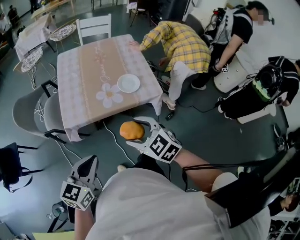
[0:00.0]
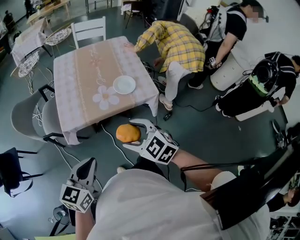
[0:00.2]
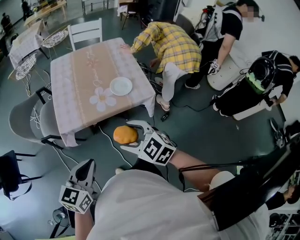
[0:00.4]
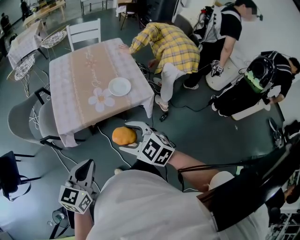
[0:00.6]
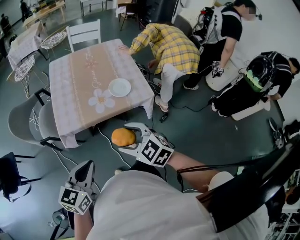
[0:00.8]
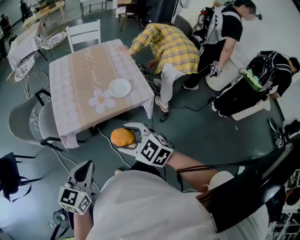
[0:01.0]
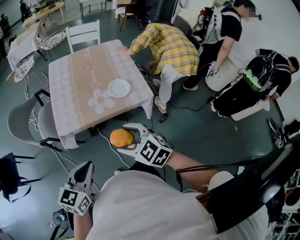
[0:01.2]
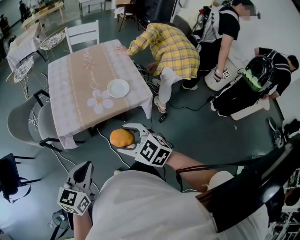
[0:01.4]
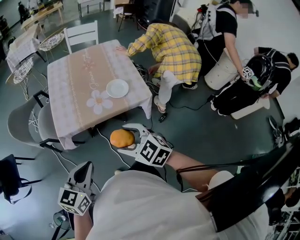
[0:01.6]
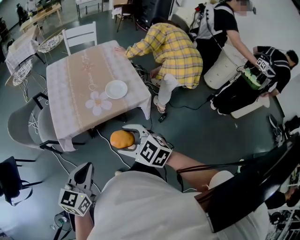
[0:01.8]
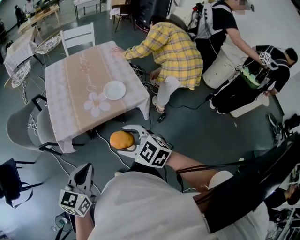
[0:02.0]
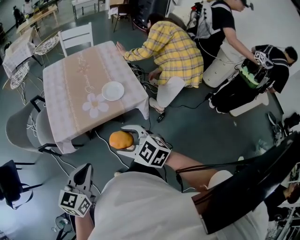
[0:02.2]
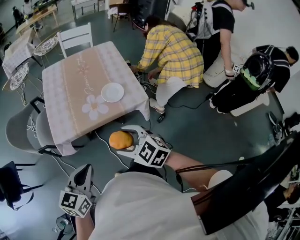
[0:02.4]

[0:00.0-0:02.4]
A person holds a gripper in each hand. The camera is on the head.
0:00.0 to 0:02.4: The grippers stay close to where they were, moving slightly.

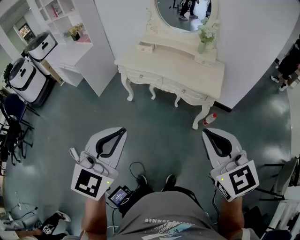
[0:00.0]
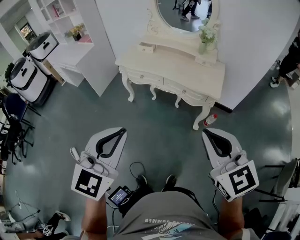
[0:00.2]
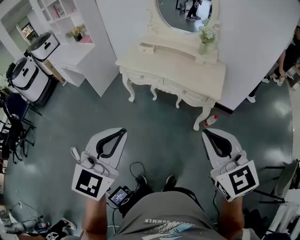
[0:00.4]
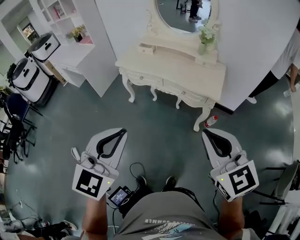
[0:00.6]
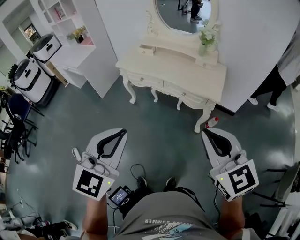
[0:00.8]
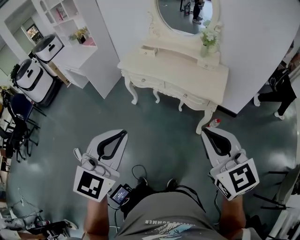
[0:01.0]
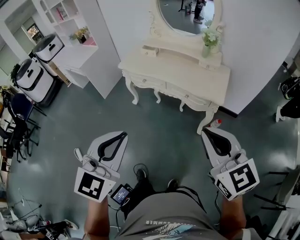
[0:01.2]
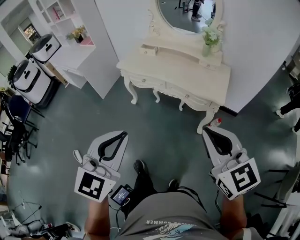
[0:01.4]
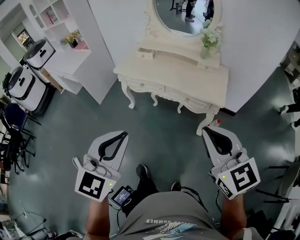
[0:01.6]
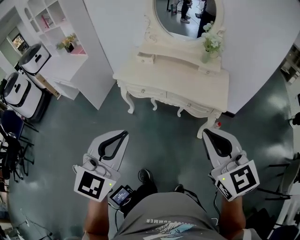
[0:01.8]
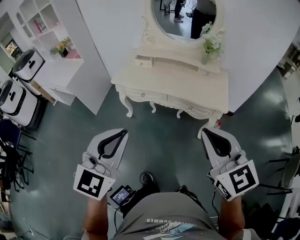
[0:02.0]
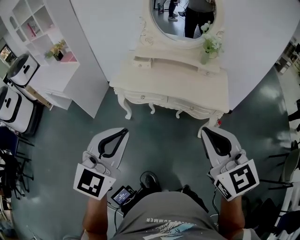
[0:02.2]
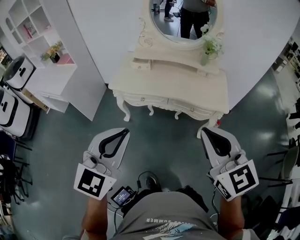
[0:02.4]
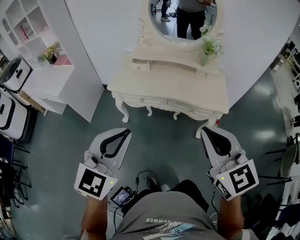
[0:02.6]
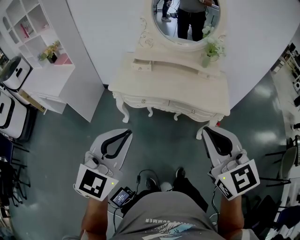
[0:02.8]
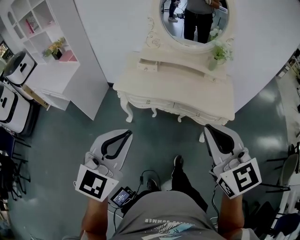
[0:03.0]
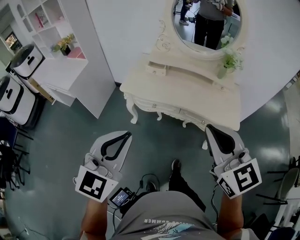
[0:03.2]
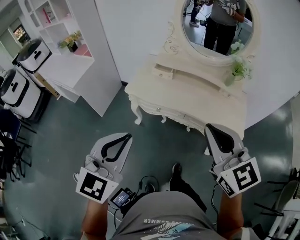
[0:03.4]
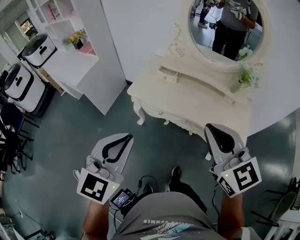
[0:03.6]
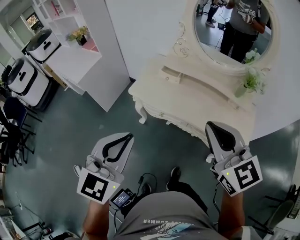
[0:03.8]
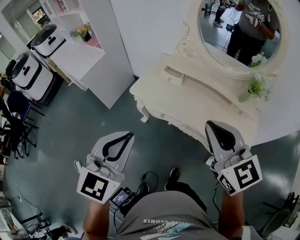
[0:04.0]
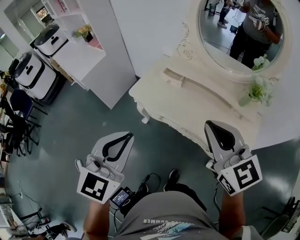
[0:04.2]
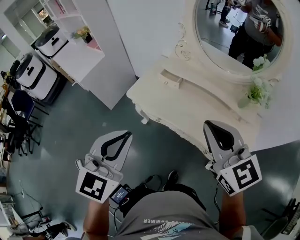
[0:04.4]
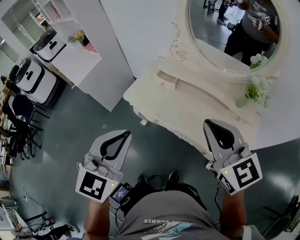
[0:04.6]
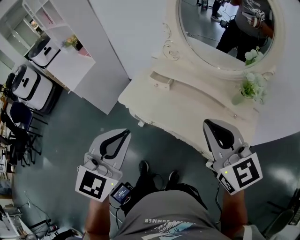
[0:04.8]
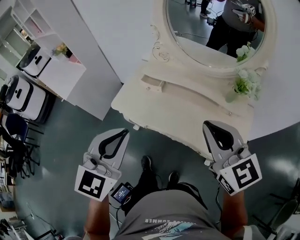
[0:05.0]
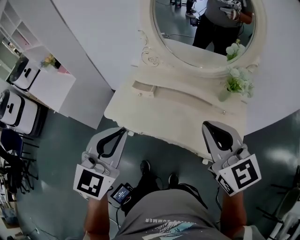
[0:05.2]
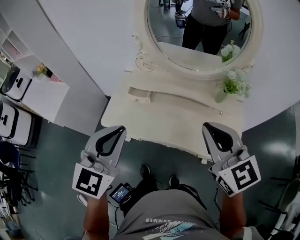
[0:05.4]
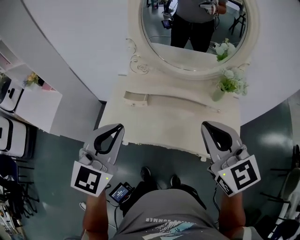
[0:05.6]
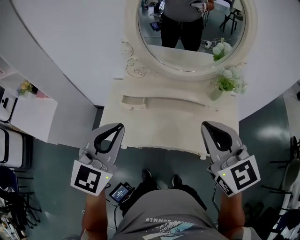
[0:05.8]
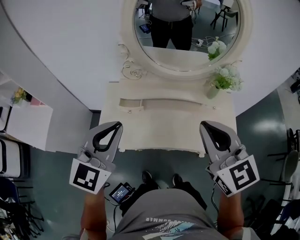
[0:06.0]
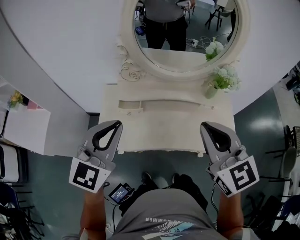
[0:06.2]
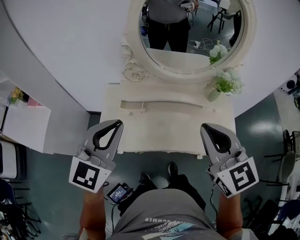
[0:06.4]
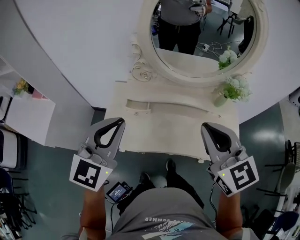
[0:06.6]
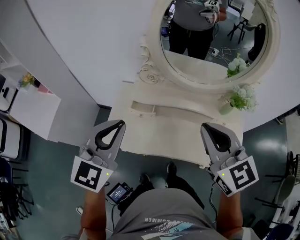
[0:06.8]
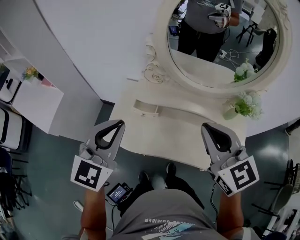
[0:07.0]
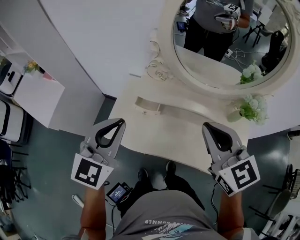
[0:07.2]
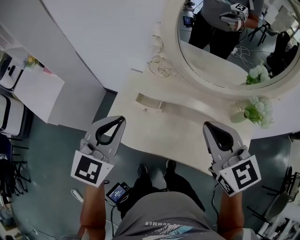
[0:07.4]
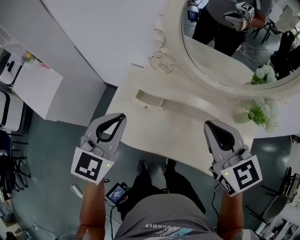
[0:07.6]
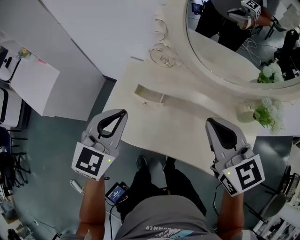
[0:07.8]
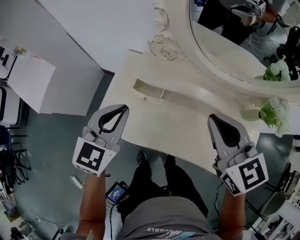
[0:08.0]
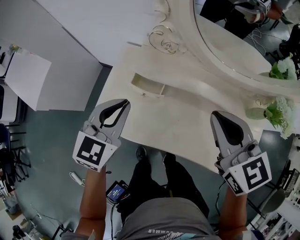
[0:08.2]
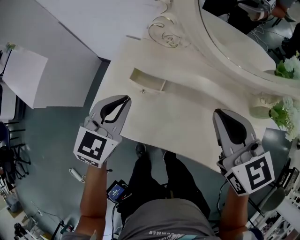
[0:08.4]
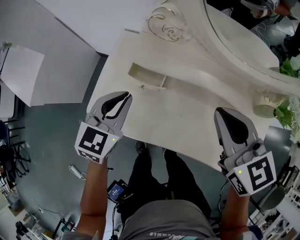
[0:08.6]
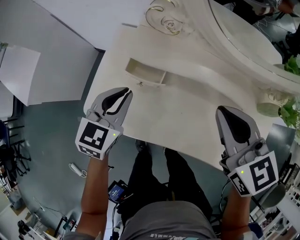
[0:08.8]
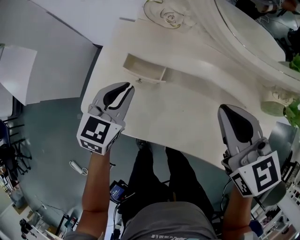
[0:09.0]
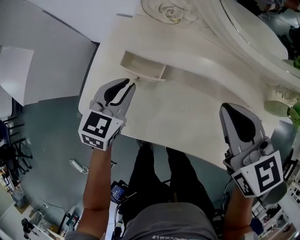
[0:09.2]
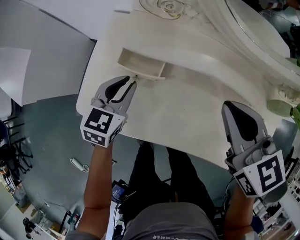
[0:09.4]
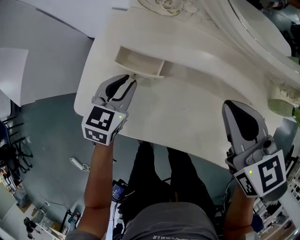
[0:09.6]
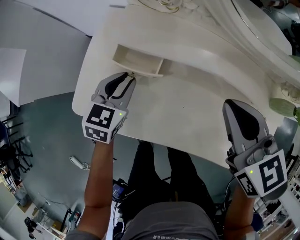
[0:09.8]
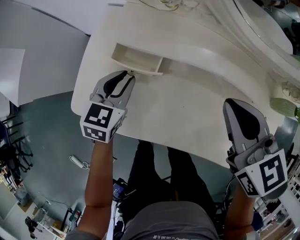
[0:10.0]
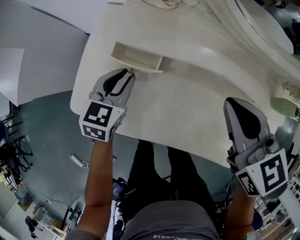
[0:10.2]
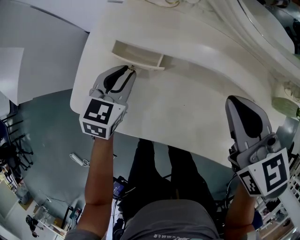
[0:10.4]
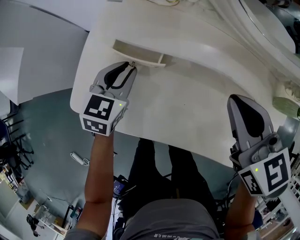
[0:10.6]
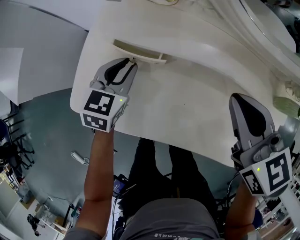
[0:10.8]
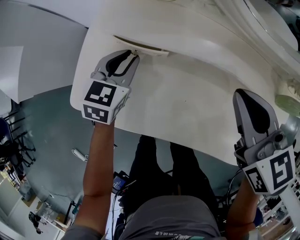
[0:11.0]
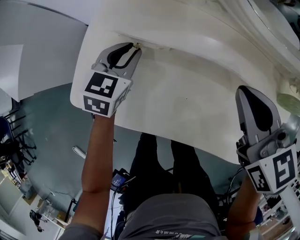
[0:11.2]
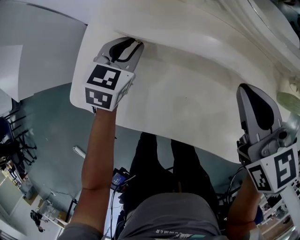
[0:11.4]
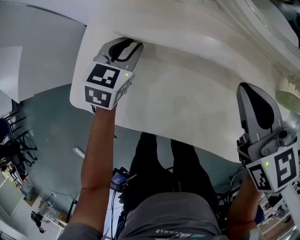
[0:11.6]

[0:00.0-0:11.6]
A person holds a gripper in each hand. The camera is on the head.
0:00.0 to 0:01.4: The right gripper shifts roughly 5 cm forward, while the left gripper moves some 5 cm.
0:01.4 to 0:02.8: The right gripper heads to the left and forward, covering approximately 25 cm. The left gripper travels forward and to the left by roughly 30 cm.
0:02.8 to 0:04.4: The left gripper moves roughly 20 cm, and changes its angle by some 30 degrees. Meanwhile the right gripper moves approximately 30 cm, and rotates roughly 20 degrees.
0:04.4 to 0:05.8: The right gripper ends up roughly 10 cm from where it was, and swivels roughly 30 degrees. The left gripper shifts by some 20 cm, and swivels some 30 degrees.
0:05.8 to 0:07.2: Both grippers travel together forward and to the left, about 10 cm.
0:07.2 to 0:08.8: The two grippers go approximately 25 cm downward and forward.
0:08.8 to 0:10.2: The right gripper goes about 5 cm downward. The left gripper goes about 10 cm downward.
0:10.2 to 0:11.6: The left gripper is displaced forward by approximately 5 cm.

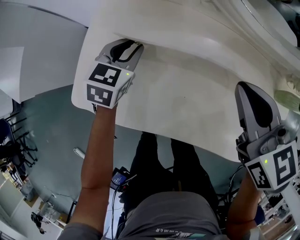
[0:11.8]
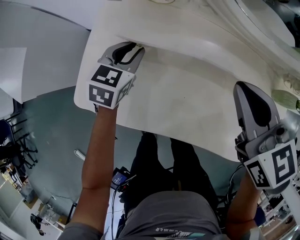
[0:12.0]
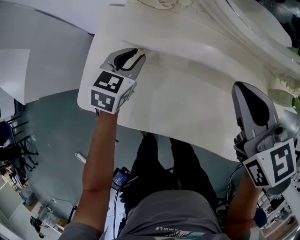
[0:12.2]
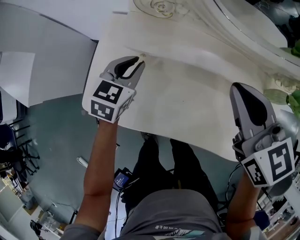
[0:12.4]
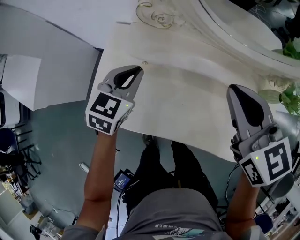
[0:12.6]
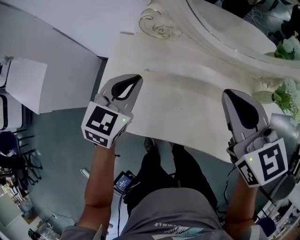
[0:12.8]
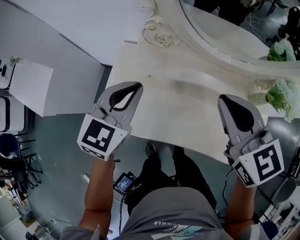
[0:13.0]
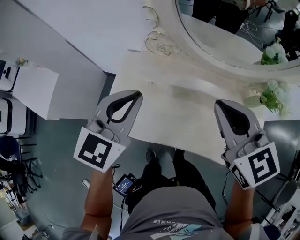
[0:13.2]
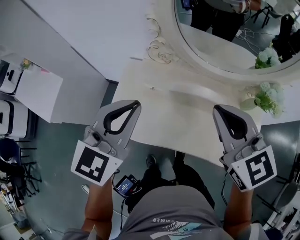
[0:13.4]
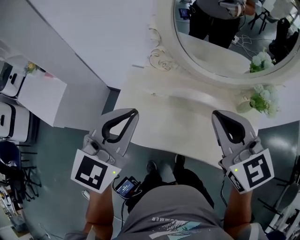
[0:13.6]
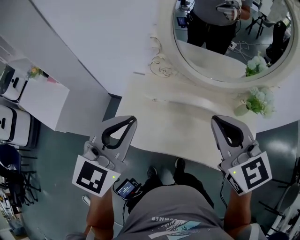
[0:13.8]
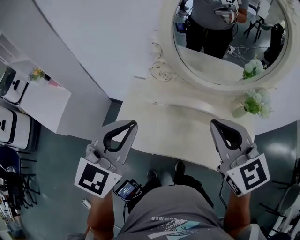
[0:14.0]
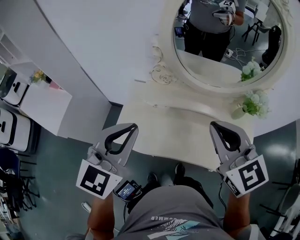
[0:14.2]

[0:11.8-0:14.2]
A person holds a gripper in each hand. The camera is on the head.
0:11.8 to 0:13.0: The right gripper travels upward by roughly 15 cm, while the left gripper is displaced upward by roughly 25 cm, and closes up.
0:13.0 to 0:14.2: The two grippers go approximately 20 cm upward and backward.

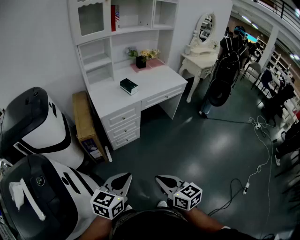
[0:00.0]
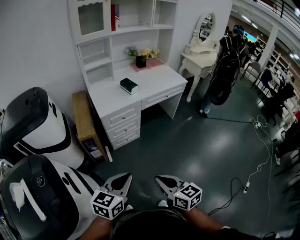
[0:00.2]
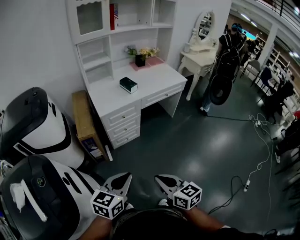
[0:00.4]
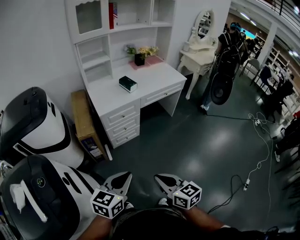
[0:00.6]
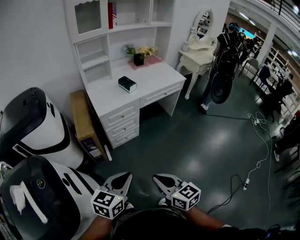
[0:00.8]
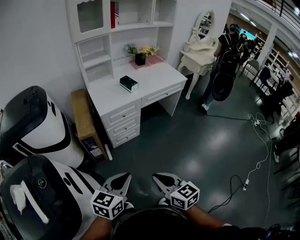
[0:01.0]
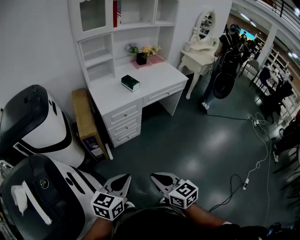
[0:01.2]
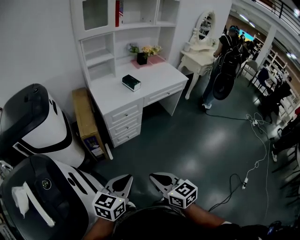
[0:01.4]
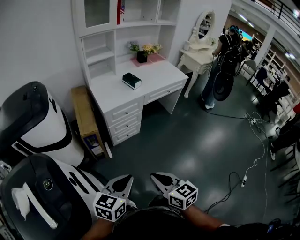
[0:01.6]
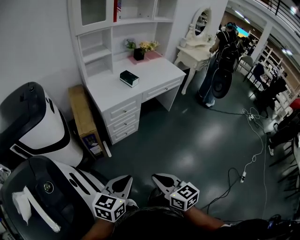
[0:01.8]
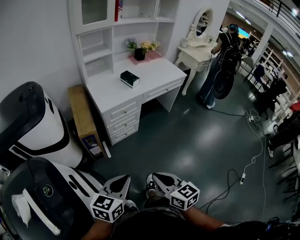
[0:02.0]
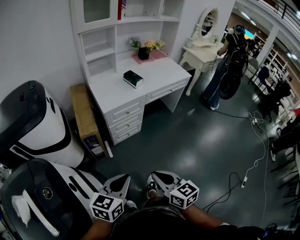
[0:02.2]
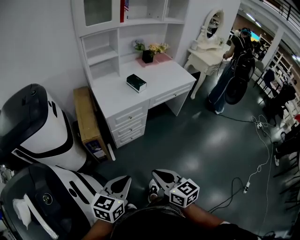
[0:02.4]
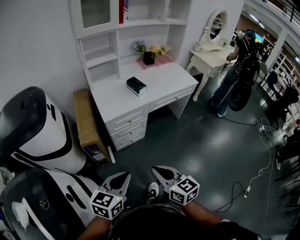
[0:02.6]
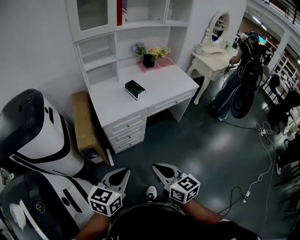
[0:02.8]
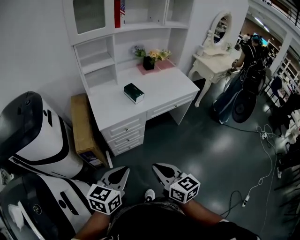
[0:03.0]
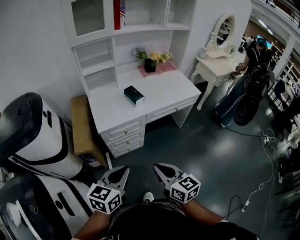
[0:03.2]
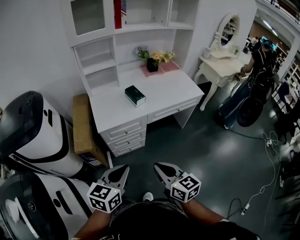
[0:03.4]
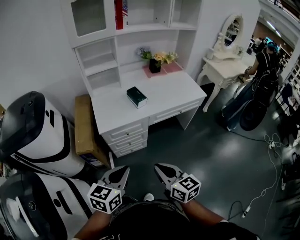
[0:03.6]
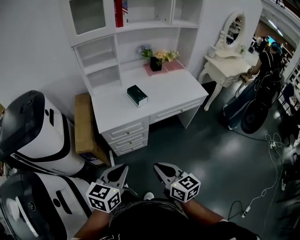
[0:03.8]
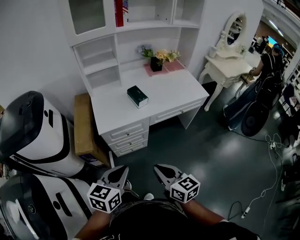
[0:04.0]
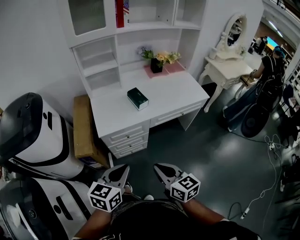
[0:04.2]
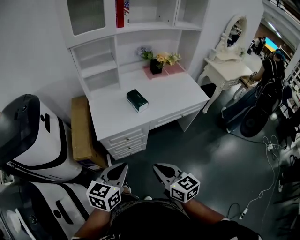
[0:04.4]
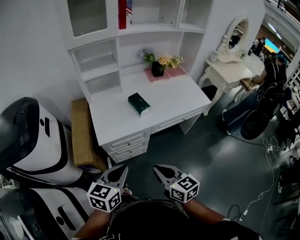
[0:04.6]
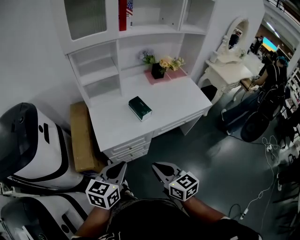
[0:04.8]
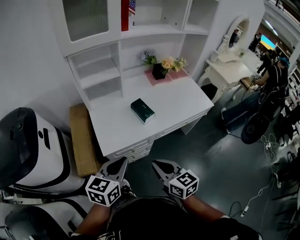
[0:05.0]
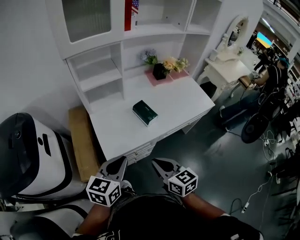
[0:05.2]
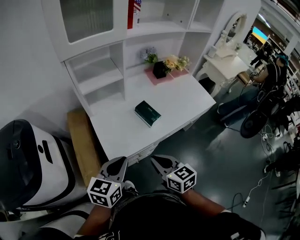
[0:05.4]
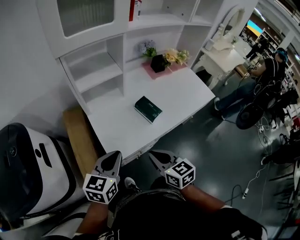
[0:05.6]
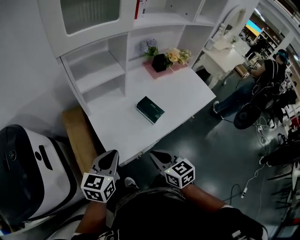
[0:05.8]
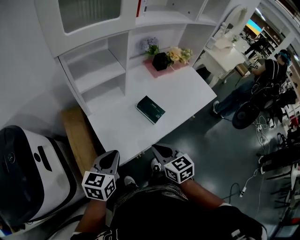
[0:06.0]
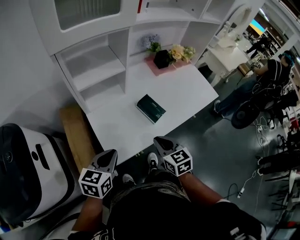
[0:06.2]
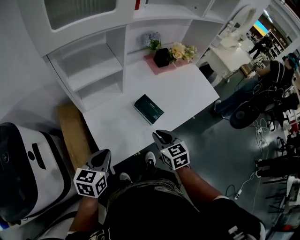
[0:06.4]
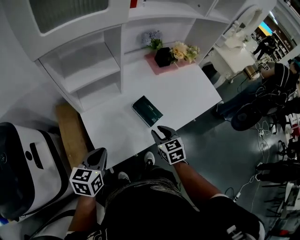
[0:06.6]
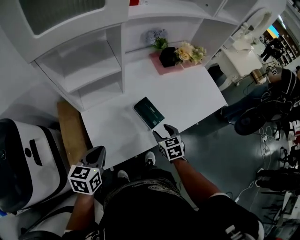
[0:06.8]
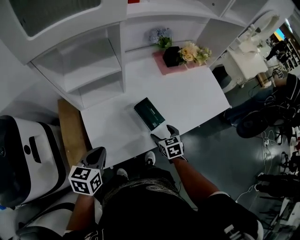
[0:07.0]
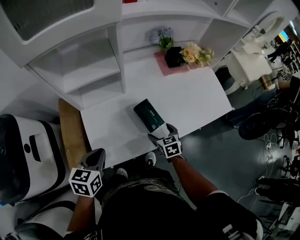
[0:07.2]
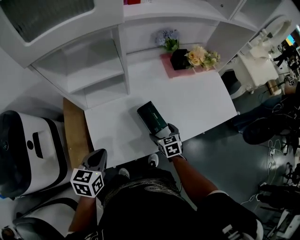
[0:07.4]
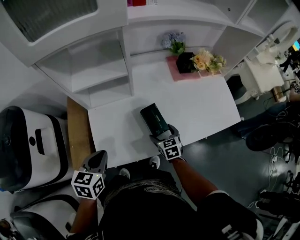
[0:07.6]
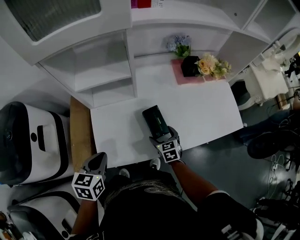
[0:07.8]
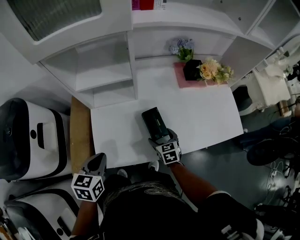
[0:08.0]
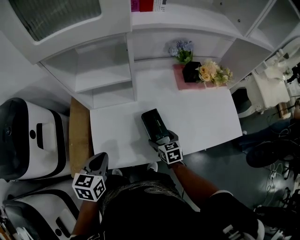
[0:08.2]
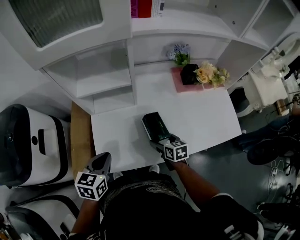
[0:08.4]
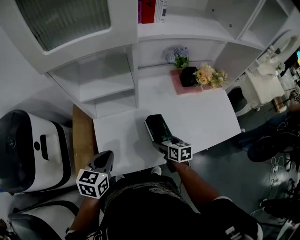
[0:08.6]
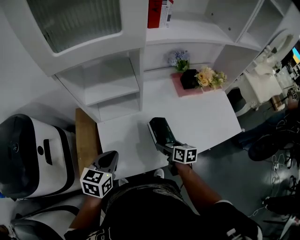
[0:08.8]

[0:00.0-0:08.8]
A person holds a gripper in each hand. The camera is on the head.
0:00.0 to 0:01.4: The grippers both shift to the left by roughly 5 cm.
0:01.4 to 0:03.0: The two grippers go approximately 20 cm forward.
0:03.0 to 0:04.4: Both grippers move forward, about 10 cm.
0:04.4 to 0:05.8: The two grippers go about 30 cm forward and to the left.
0:05.8 to 0:07.4: The left gripper moves forward and downward, some 10 cm, and turns by about 20 degrees; the right gripper shifts approximately 30 cm forward, downward and to the right, rotates roughly 20 degrees, and opens up.
0:07.4 to 0:08.8: The right gripper moves upward, roughly 5 cm, and swivels some 30 degrees.
